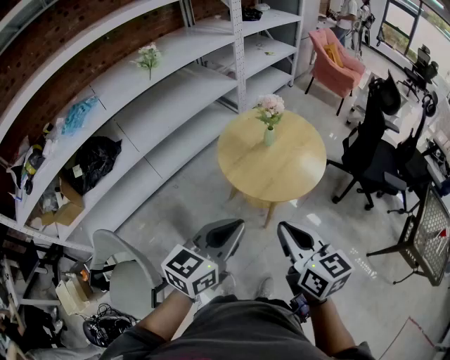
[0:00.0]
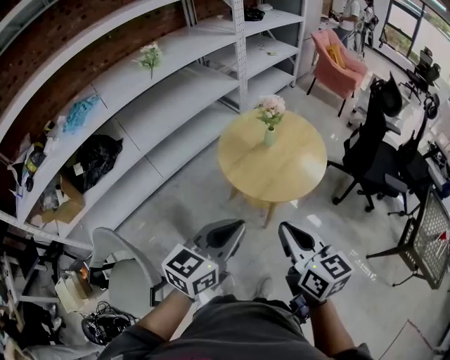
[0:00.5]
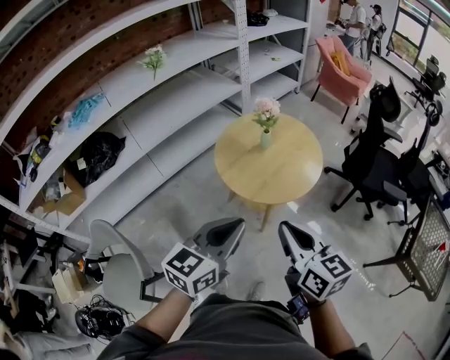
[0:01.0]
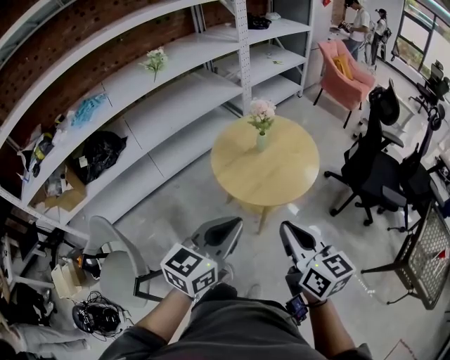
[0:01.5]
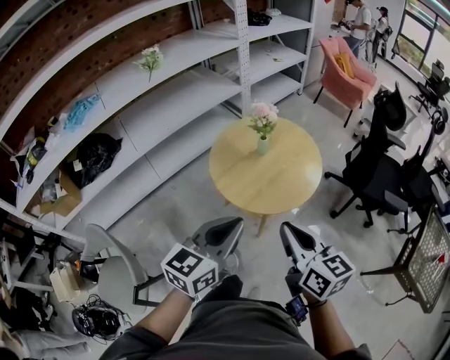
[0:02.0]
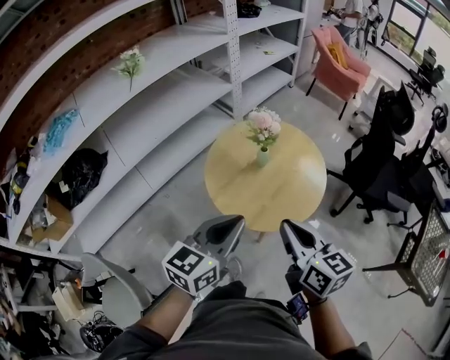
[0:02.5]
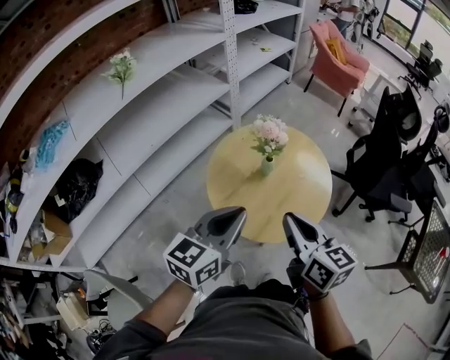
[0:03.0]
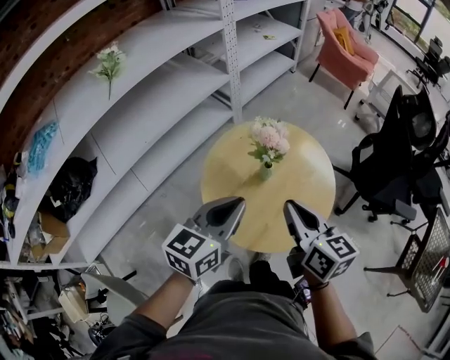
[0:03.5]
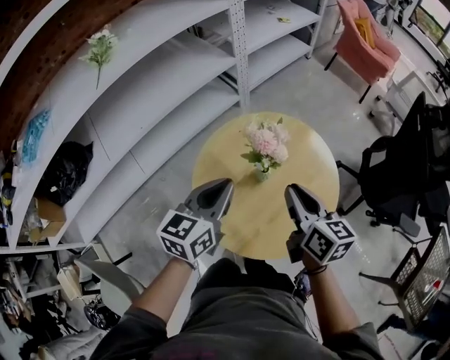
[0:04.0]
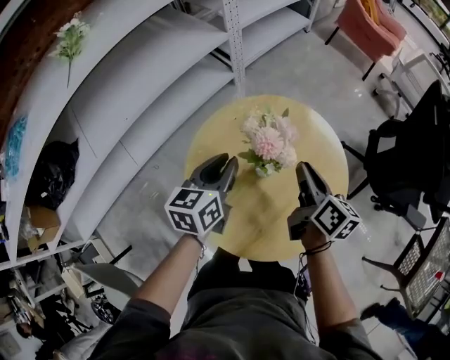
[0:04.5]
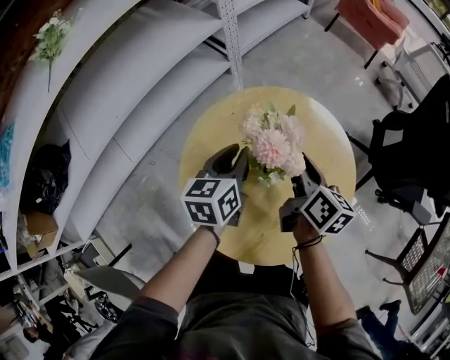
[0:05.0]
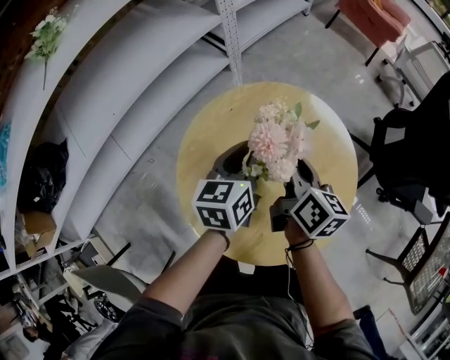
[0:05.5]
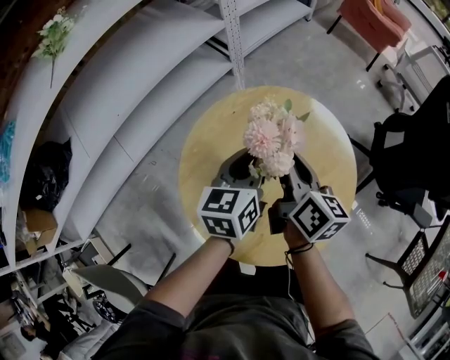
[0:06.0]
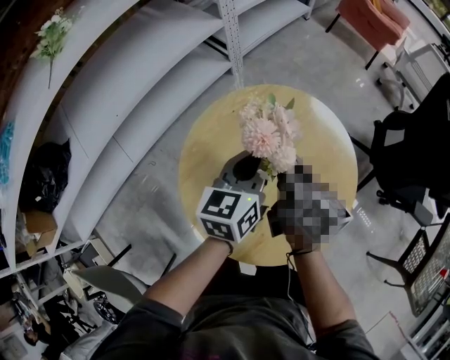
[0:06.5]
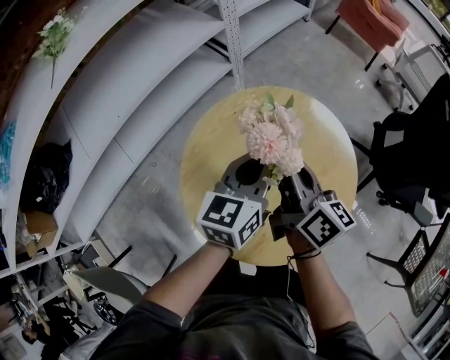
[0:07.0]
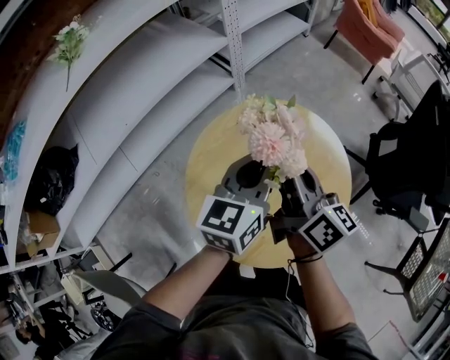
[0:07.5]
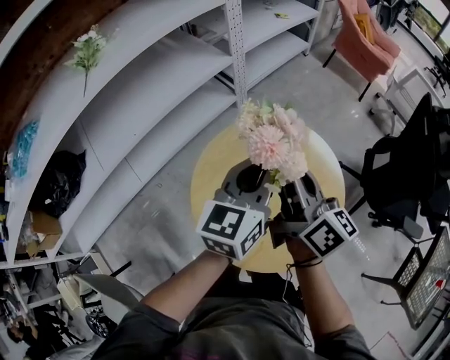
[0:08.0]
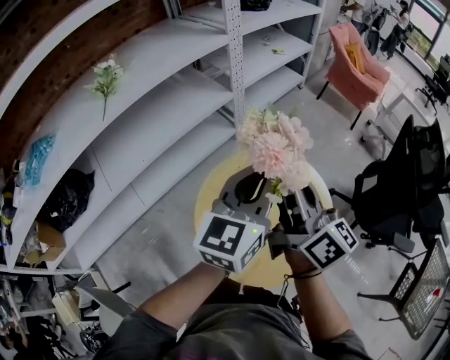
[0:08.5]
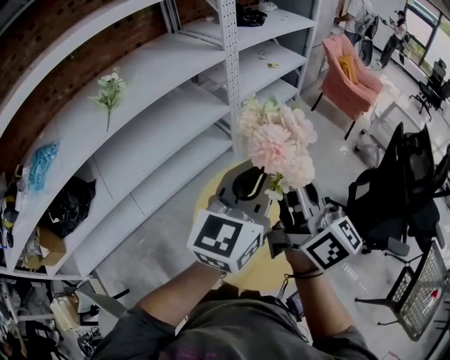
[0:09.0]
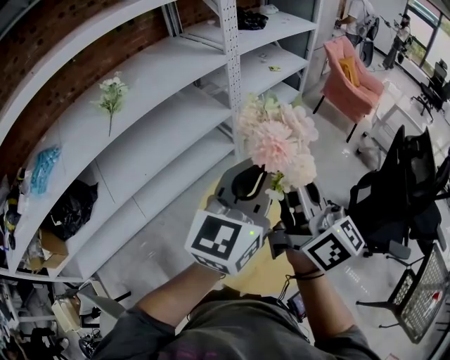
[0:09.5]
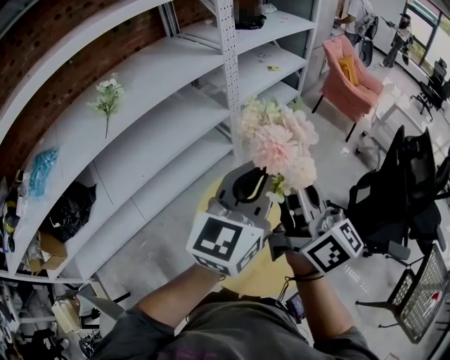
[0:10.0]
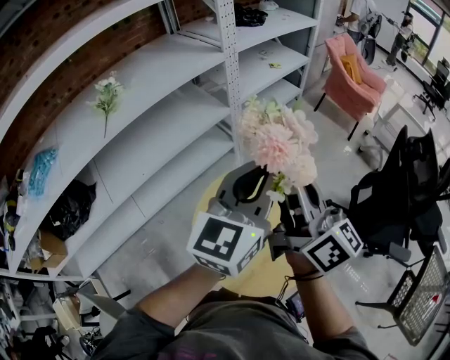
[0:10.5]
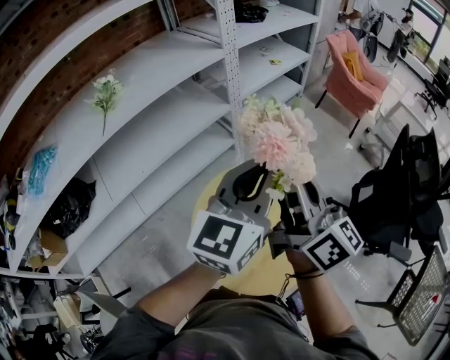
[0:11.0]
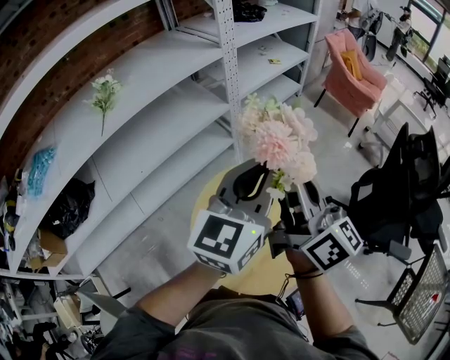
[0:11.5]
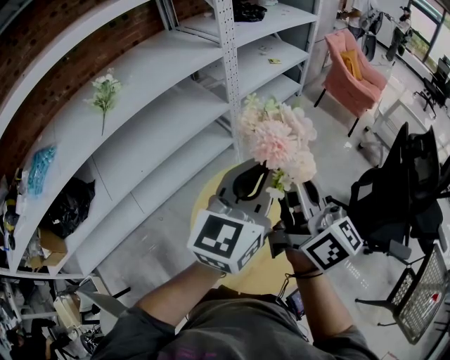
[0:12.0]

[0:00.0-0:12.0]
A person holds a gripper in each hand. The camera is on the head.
0:00.0 to 0:02.0: The left gripper heads to the right, covering some 5 cm; the right gripper is displaced to the right and forward by approximately 10 cm.
0:02.0 to 0:04.0: The grippers both shift forward by roughly 35 cm.
0:04.0 to 0:06.0: The right gripper goes roughly 15 cm forward and downward; the left gripper travels forward, downward and to the right by roughly 15 cm.
0:06.0 to 0:08.0: Both grippers travel together upward, roughly 15 cm. The right gripper swivels roughly 20 degrees.
0:08.0 to 0:10.0: Both grippers travel together upward, approximately 20 cm.
0:10.0 to 0:12.0: The grippers move only a little.

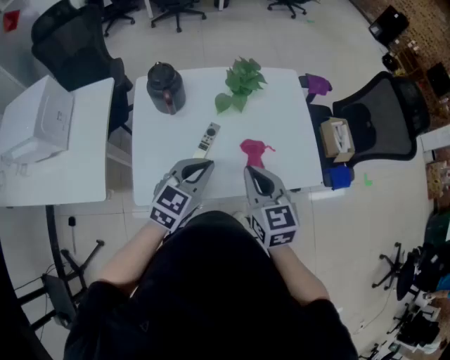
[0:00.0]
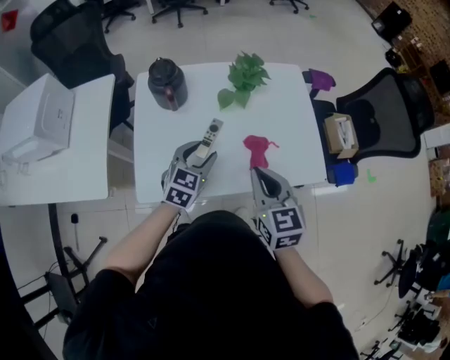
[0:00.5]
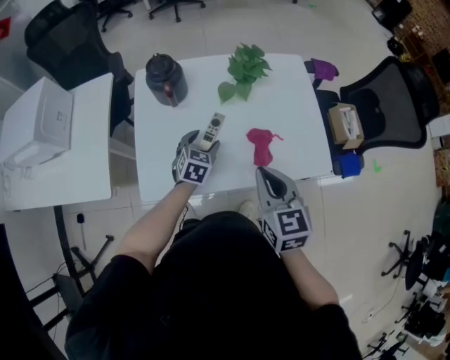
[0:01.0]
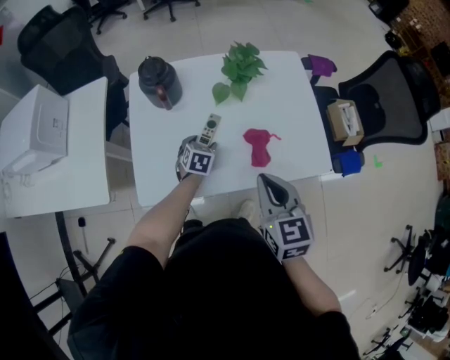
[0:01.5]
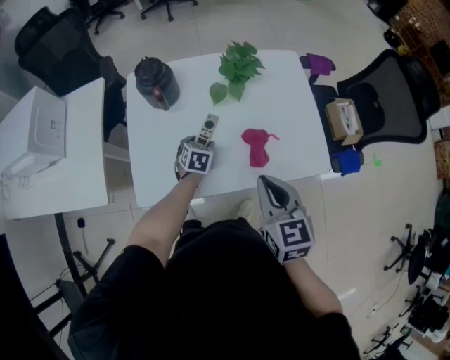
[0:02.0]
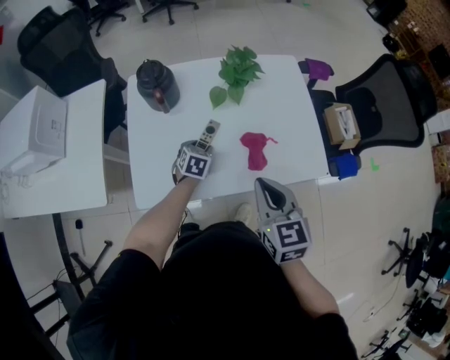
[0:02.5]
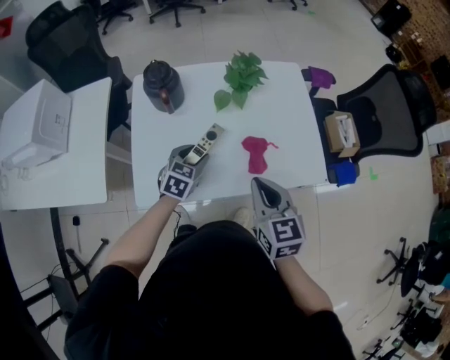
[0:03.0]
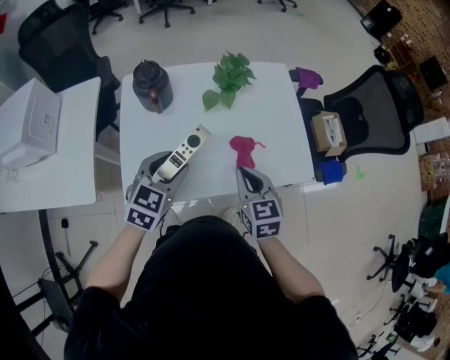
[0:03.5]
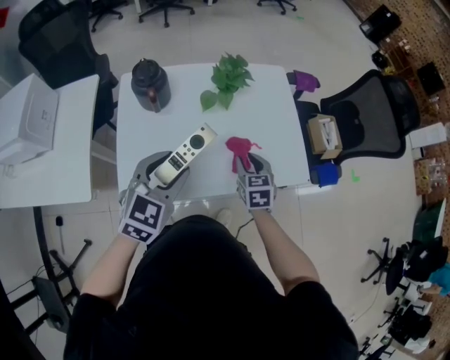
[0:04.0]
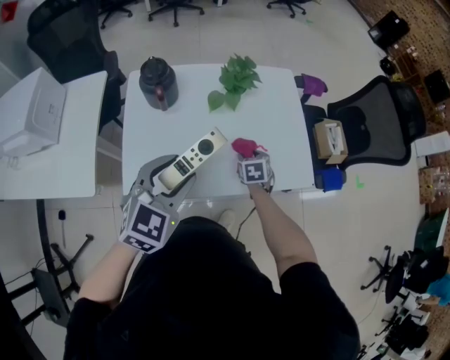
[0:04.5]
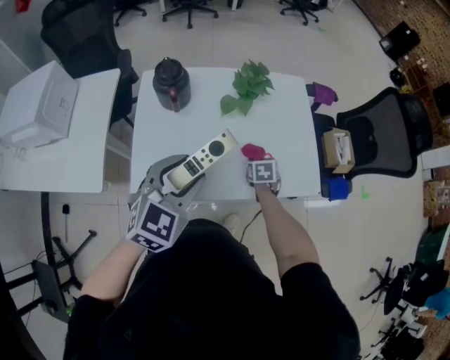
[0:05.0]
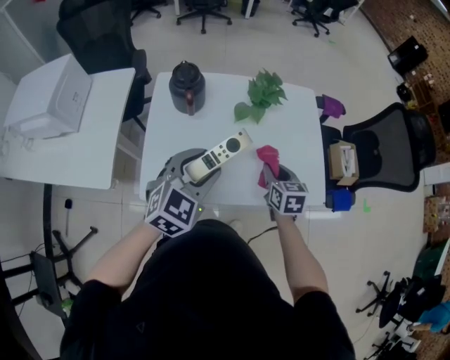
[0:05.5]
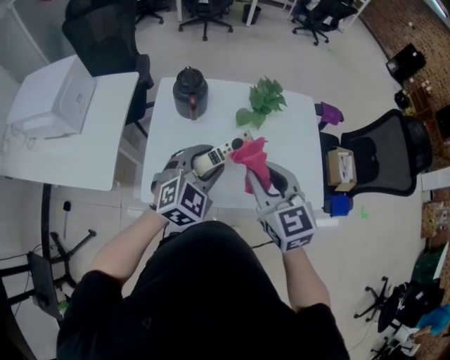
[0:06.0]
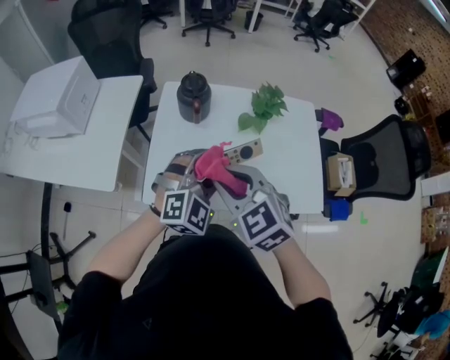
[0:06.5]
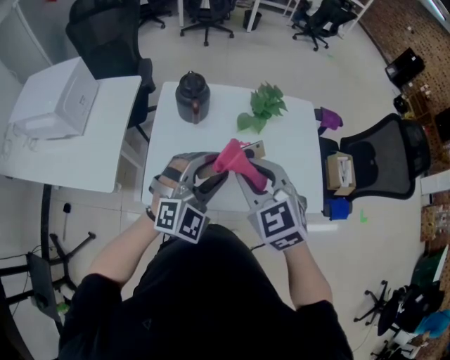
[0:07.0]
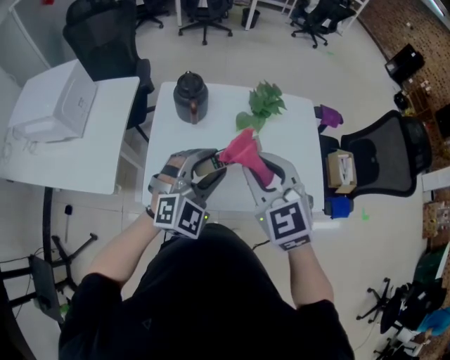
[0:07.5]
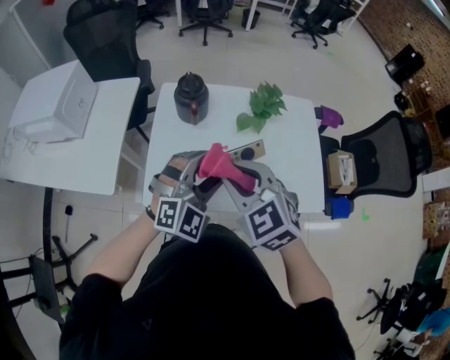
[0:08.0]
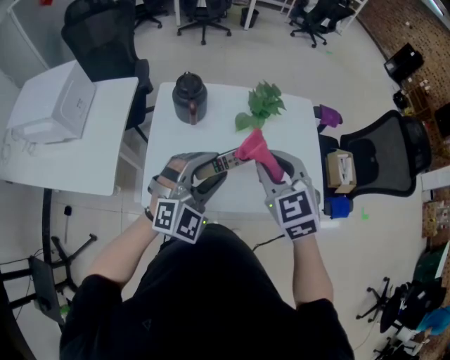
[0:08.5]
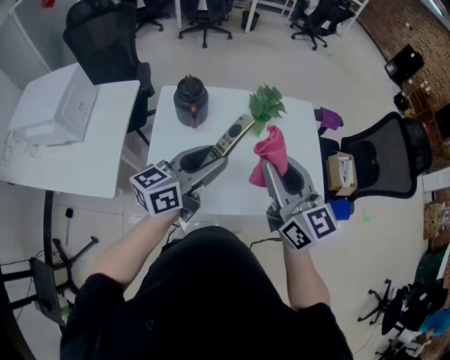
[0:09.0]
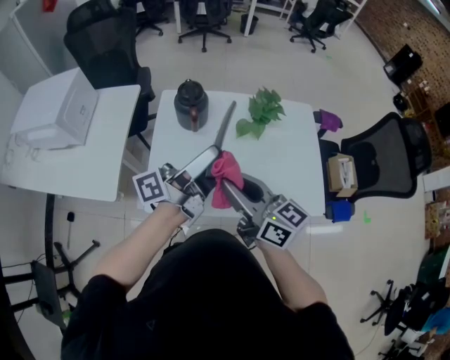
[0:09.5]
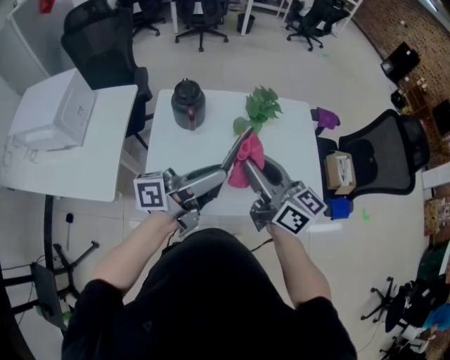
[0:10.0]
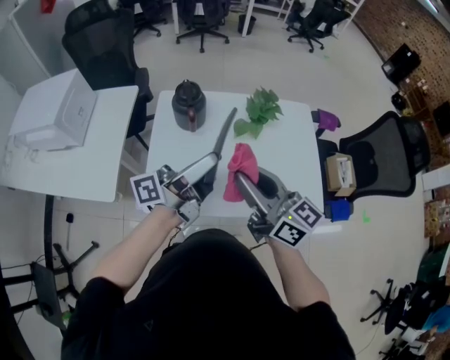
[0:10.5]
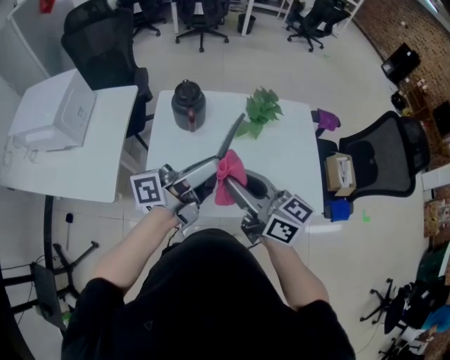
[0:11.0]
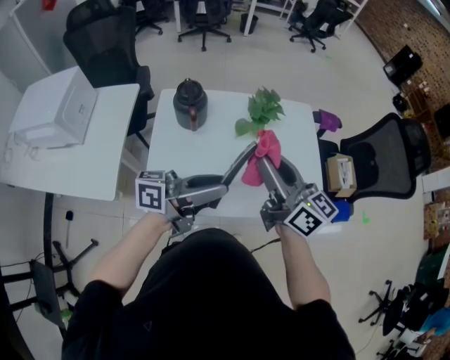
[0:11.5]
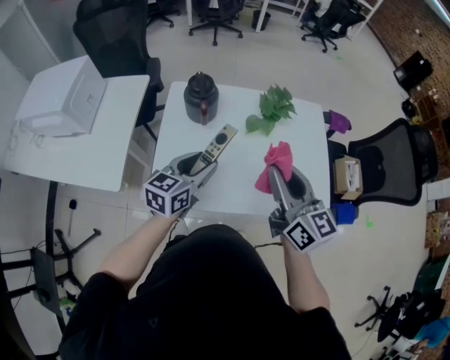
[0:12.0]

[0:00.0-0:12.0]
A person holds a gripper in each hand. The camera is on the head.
0:00.0 to 0:02.0: The left gripper is displaced downward and forward by approximately 25 cm, tips its fingers downward by about 30 degrees, and opens up.
0:02.0 to 0:04.0: The left gripper goes some 30 cm upward and backward, and turns by approximately 30 degrees; the right gripper travels downward and forward by roughly 15 cm, and opens.
0:04.0 to 0:06.0: The right gripper is displaced upward and to the left by roughly 25 cm, and rotates about 30 degrees.
0:06.0 to 0:08.0: The left gripper turns by approximately 20 degrees. Meanwhile the right gripper swings left and right, about 10 cm each way, with 2 reversals, and rotates approximately 20 degrees.
0:08.0 to 0:10.0: The left gripper rolls counterclockwise, seen from behind, by about 100 degrees. Meanwhile the right gripper goes left and right, roughly 10 cm each way, reversing 2 times, and points its fingers some 40 degrees further upward.
0:10.0 to 0:12.0: The left gripper heads downward and to the left, covering roughly 15 cm, and angles its fingers downward, by about 40 degrees.

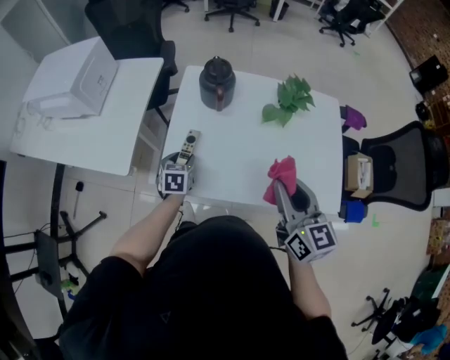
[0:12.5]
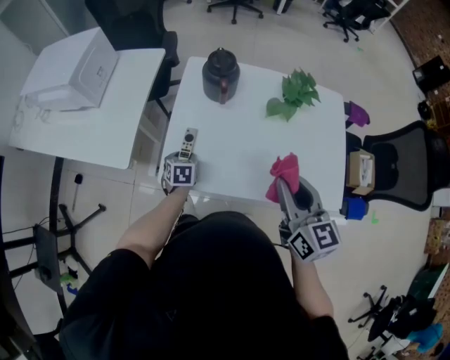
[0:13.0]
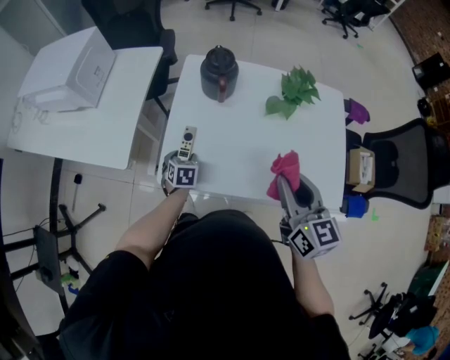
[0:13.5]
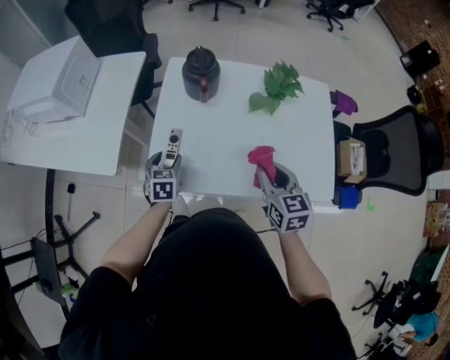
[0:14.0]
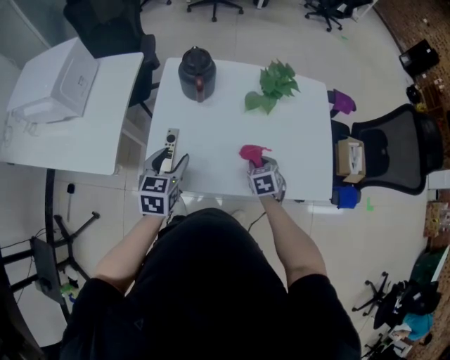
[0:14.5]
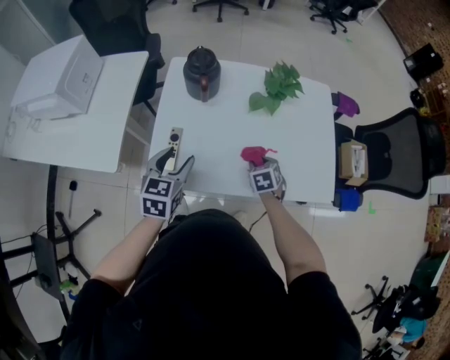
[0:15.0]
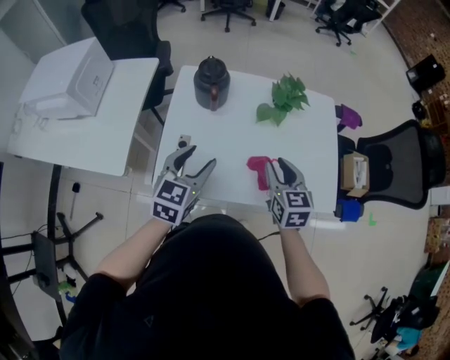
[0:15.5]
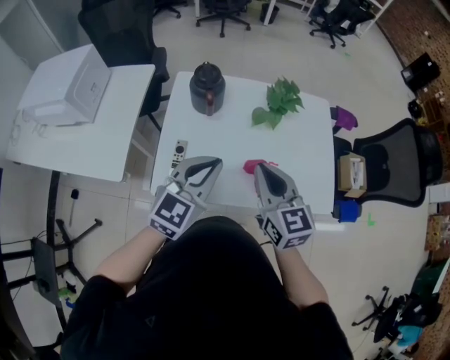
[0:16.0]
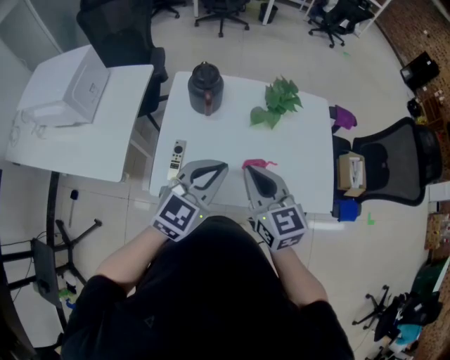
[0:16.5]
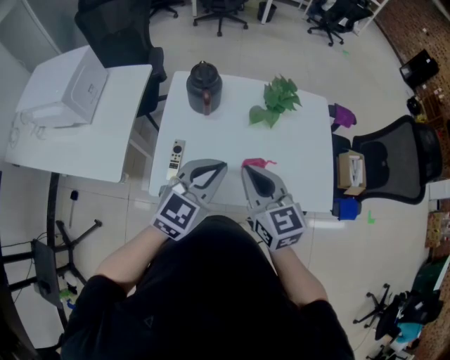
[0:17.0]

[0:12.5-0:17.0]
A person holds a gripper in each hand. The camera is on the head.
0:12.5 to 0:14.5: The left gripper shifts some 10 cm upward. The right gripper is displaced downward by about 25 cm, and angles its fingers downward, by roughly 40 degrees.
0:14.5 to 0:17.0: The left gripper goes some 20 cm upward and to the right, turns by roughly 40 degrees, and closes its fingers. The right gripper goes about 25 cm upward, angles its fingers upward, by some 40 degrees, and closes.
